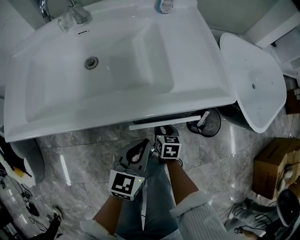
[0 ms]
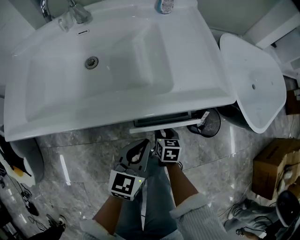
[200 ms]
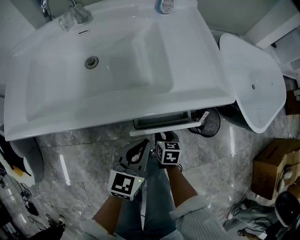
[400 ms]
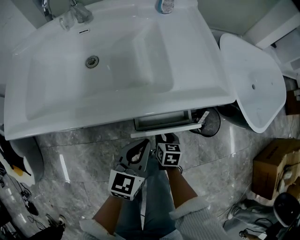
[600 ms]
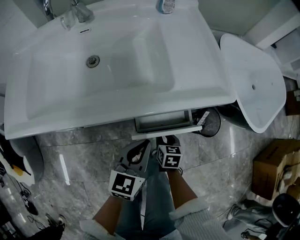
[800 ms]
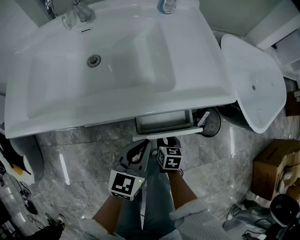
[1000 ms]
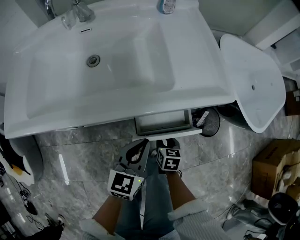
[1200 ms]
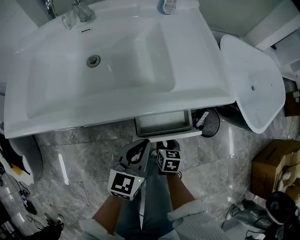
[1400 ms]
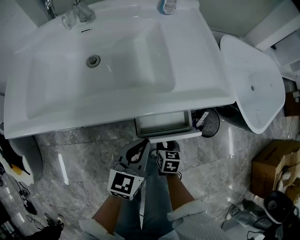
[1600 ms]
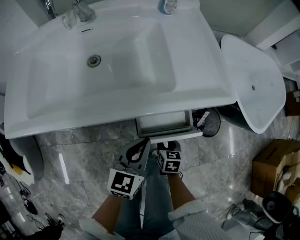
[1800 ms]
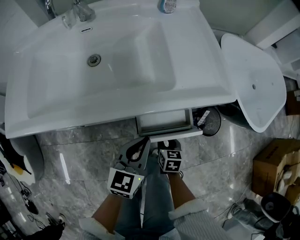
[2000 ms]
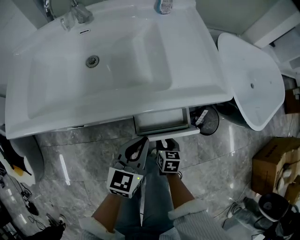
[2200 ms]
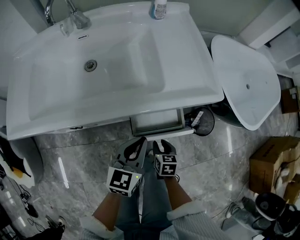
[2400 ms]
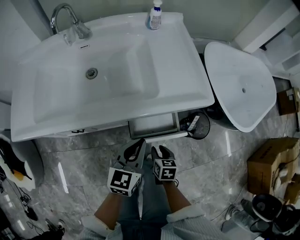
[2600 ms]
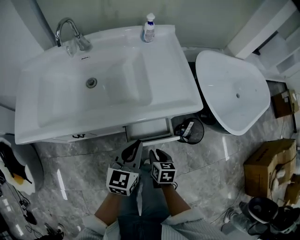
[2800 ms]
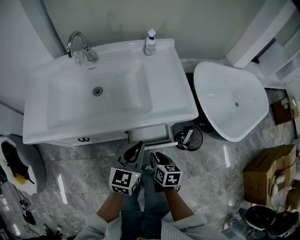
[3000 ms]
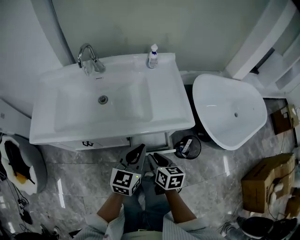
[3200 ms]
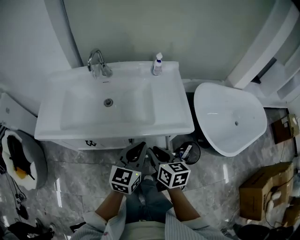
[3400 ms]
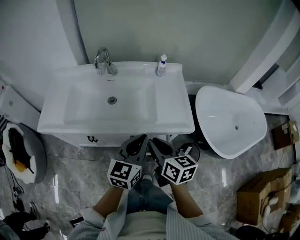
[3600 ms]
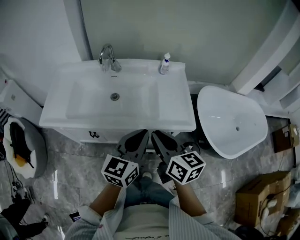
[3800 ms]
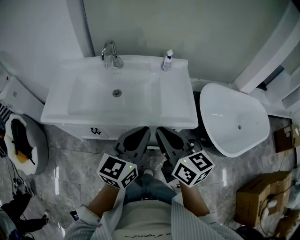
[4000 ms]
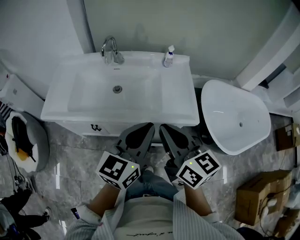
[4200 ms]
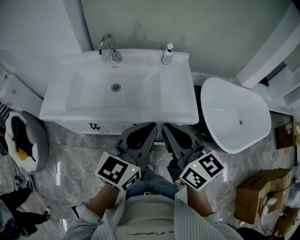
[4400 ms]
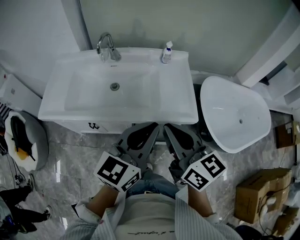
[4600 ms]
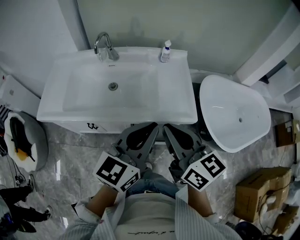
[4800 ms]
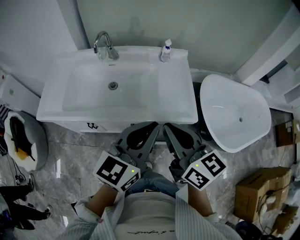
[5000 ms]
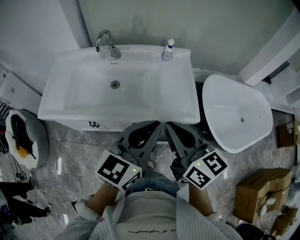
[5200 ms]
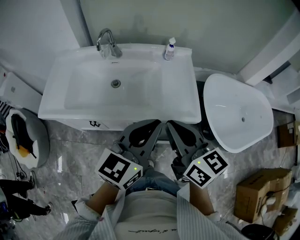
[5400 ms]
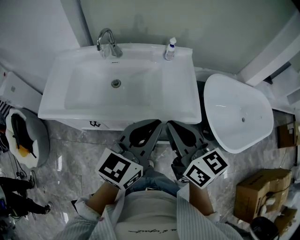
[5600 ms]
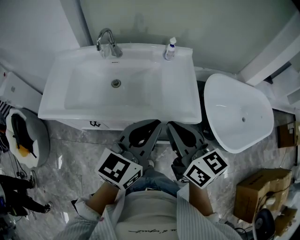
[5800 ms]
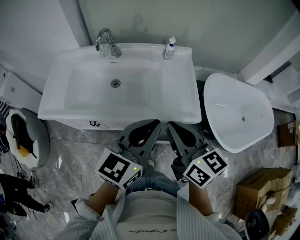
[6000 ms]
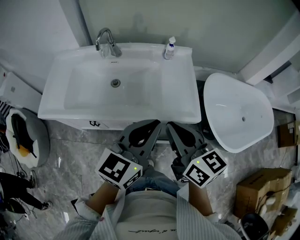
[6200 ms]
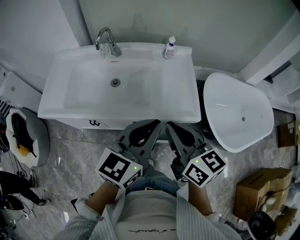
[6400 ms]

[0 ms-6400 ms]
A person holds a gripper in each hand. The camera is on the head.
0 ms to 1600 ms: The right gripper heads backward, covering some 5 cm.
1600 ms to 3200 ms: The right gripper moves upward, about 25 cm; the left gripper travels upward by roughly 15 cm.
3200 ms to 4800 ms: The grippers both shift upward by about 25 cm. The right gripper changes its angle by roughly 40 degrees, and closes.
4800 ms to 6400 ms: The grippers move only a little.

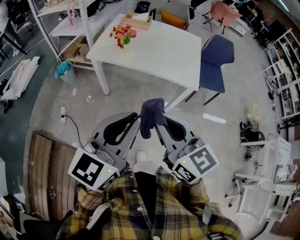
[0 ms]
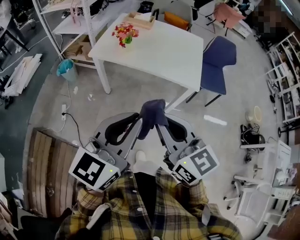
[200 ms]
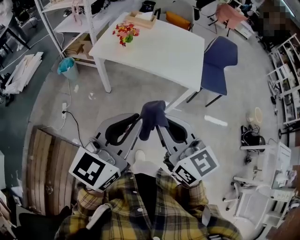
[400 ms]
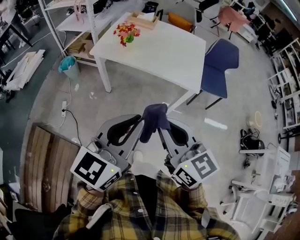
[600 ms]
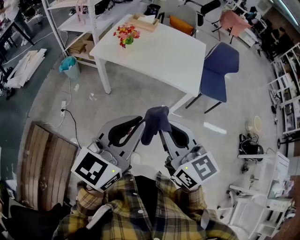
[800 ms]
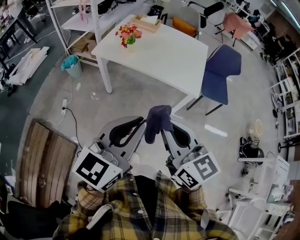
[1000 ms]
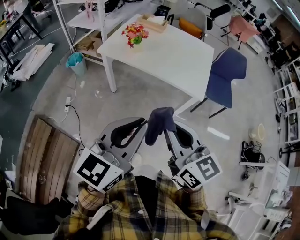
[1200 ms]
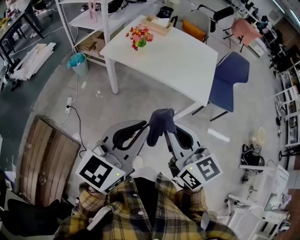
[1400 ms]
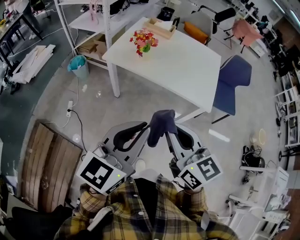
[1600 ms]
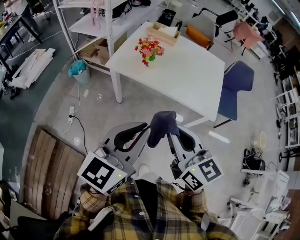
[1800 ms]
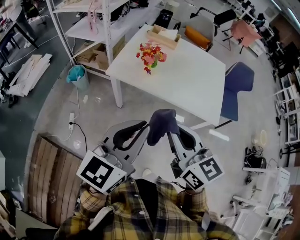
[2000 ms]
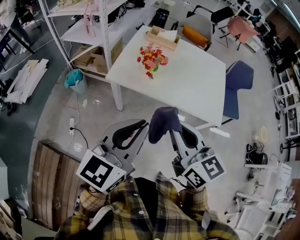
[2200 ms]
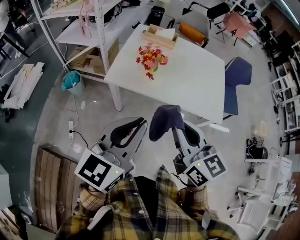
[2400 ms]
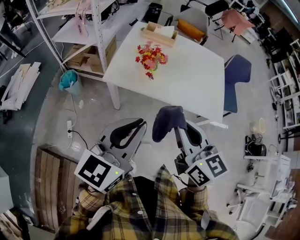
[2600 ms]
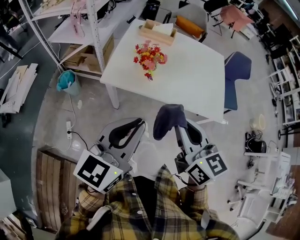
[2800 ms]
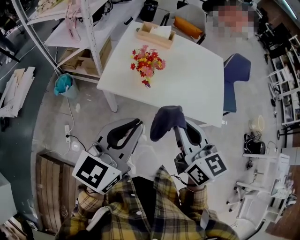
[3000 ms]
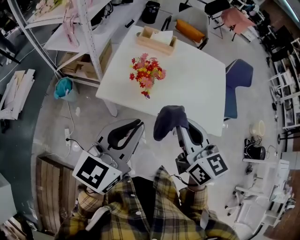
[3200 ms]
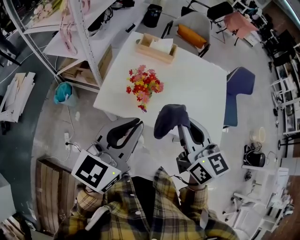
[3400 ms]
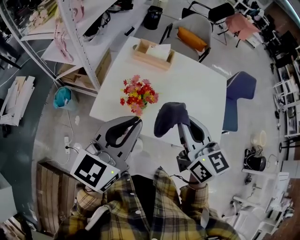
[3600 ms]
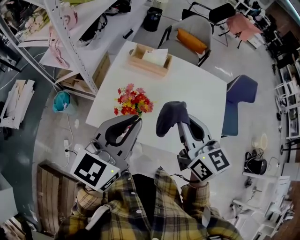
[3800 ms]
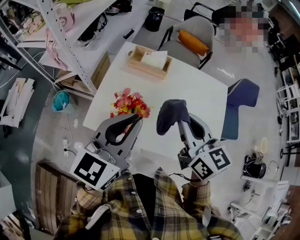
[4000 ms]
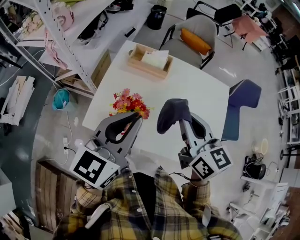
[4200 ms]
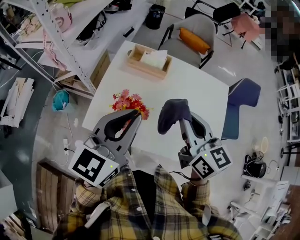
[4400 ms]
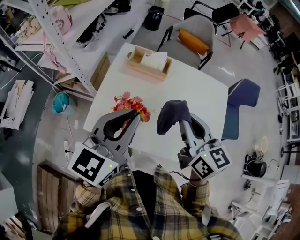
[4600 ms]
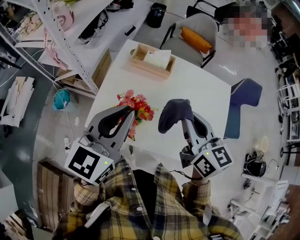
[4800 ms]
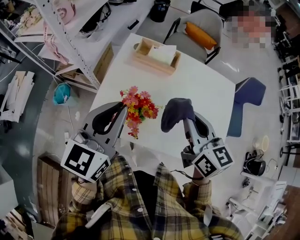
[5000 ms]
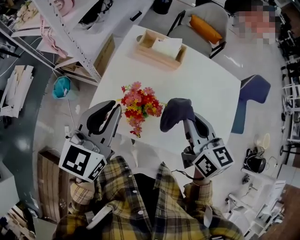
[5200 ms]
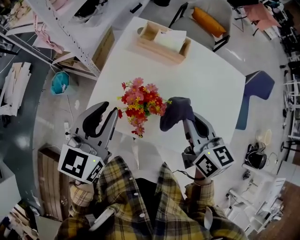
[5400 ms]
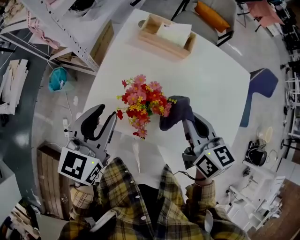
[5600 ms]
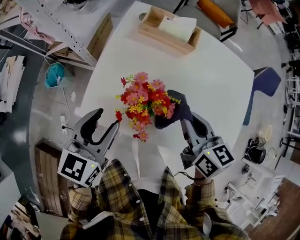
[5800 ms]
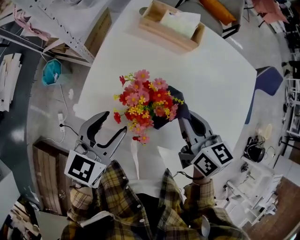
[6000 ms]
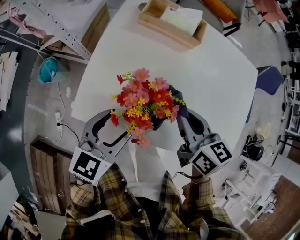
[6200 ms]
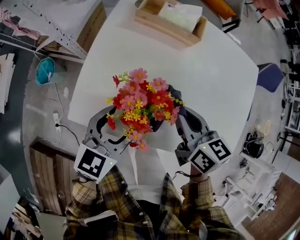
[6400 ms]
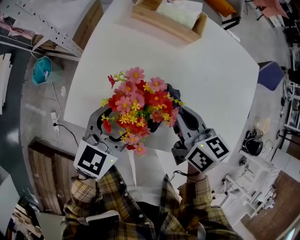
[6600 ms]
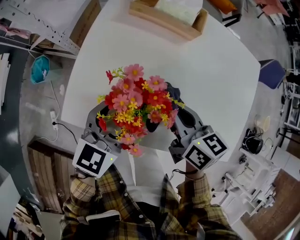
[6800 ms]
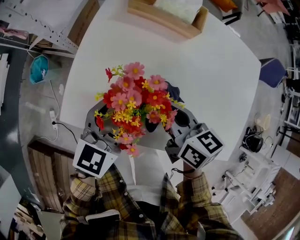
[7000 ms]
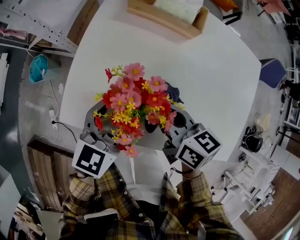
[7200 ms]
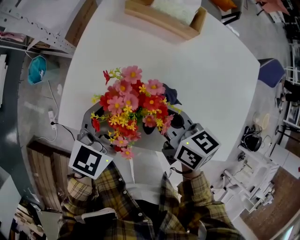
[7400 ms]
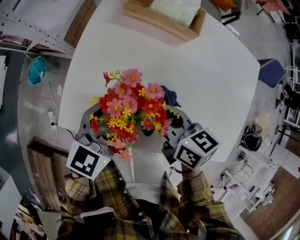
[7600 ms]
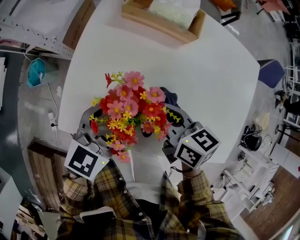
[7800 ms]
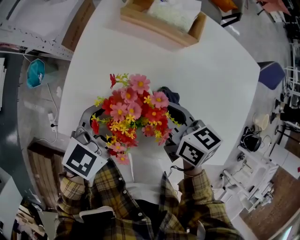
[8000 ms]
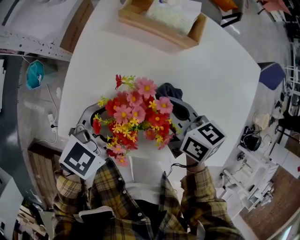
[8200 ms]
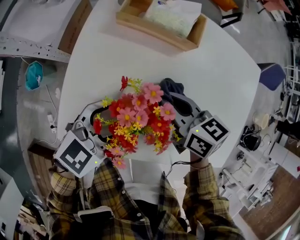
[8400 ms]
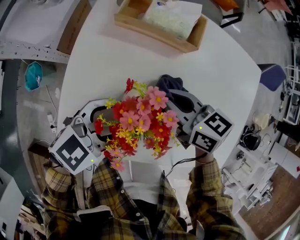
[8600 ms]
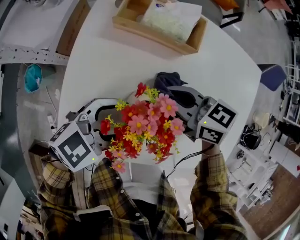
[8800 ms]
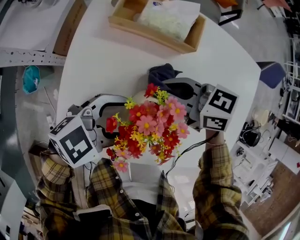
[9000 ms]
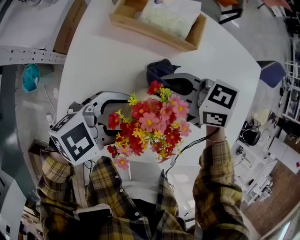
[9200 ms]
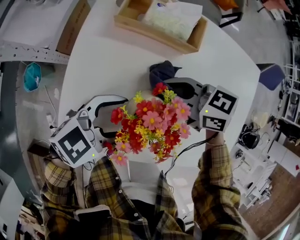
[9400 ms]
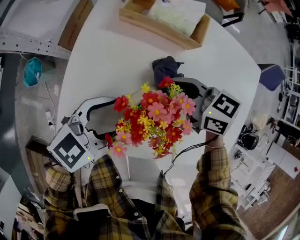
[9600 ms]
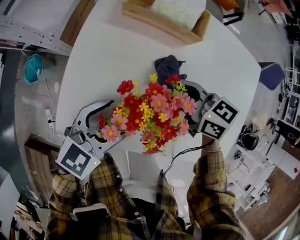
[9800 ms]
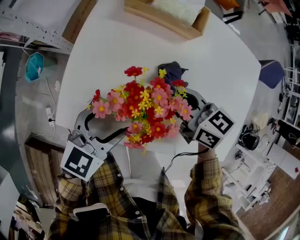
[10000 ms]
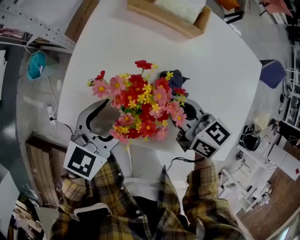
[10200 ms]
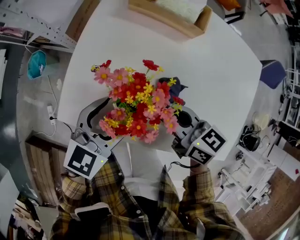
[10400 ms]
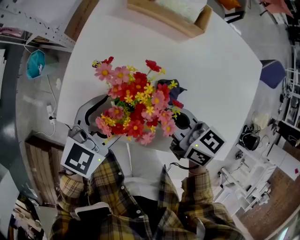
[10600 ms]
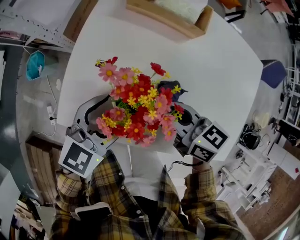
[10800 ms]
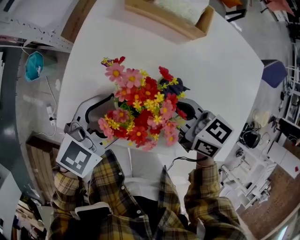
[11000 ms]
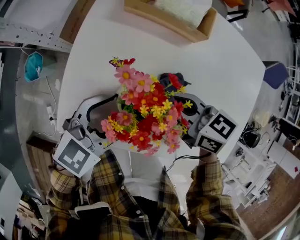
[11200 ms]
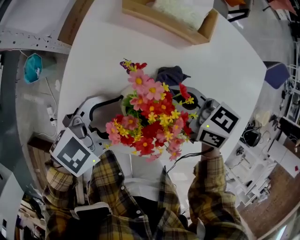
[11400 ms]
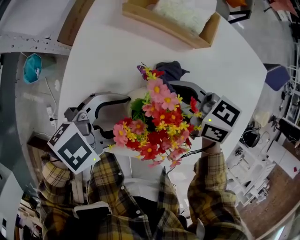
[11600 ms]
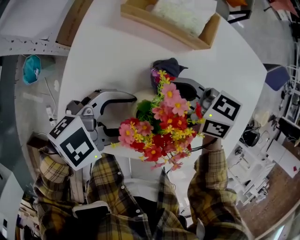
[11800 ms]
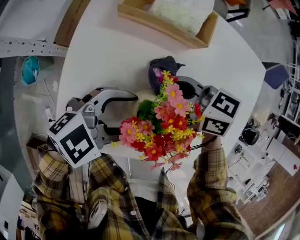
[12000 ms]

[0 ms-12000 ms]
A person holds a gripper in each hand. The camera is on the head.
0 ms to 1600 ms: The grippers both shift forward by some 5 cm.
1600 ms to 3000 ms: The two grippers go some 25 cm forward and to the left.
3000 ms to 4400 ms: The grippers both shift forward by roughly 25 cm.
4400 ms to 6000 ms: Both grippers move downward, about 20 cm. The left gripper rotates about 20 degrees, and opens its fingers, while the right gripper turns by about 20 degrees.
6000 ms to 7600 ms: The right gripper goes some 10 cm downward; the left gripper travels to the right and forward by approximately 10 cm.
7600 ms to 9000 ms: The right gripper changes place by some 10 cm, and swivels approximately 30 degrees. The left gripper changes its angle by about 40 degrees.
9000 ms to 10400 ms: The right gripper shifts by some 10 cm, and swivels about 20 degrees, while the left gripper ends up roughly 5 cm from where it was, and rotates about 40 degrees.
10400 ms to 12000 ms: The right gripper ends up roughly 10 cm from where it was. The left gripper ends up roughly 5 cm from where it was, and changes its angle by approximately 40 degrees.

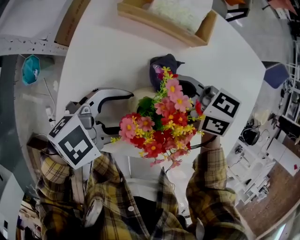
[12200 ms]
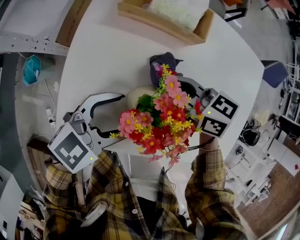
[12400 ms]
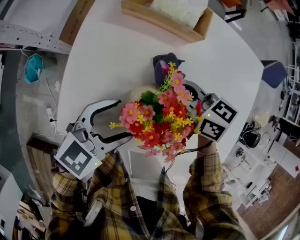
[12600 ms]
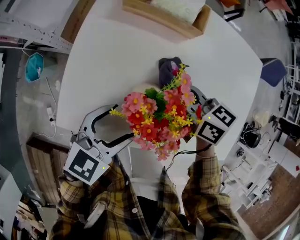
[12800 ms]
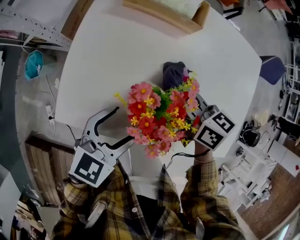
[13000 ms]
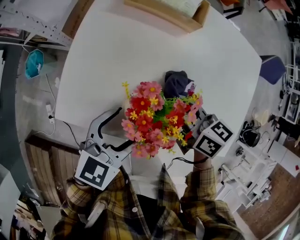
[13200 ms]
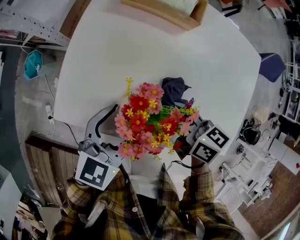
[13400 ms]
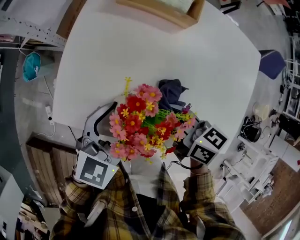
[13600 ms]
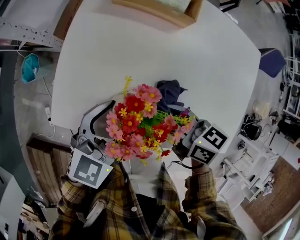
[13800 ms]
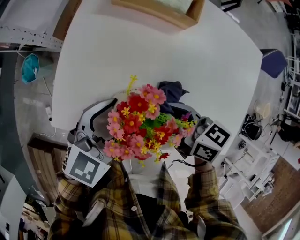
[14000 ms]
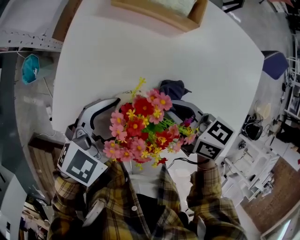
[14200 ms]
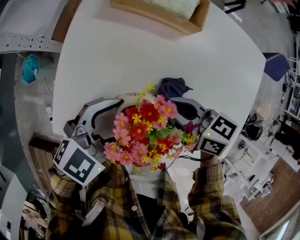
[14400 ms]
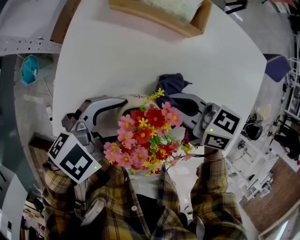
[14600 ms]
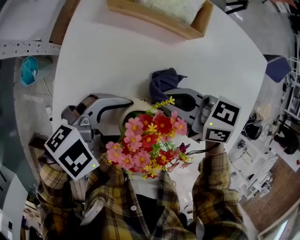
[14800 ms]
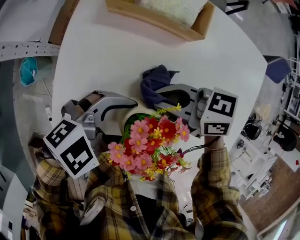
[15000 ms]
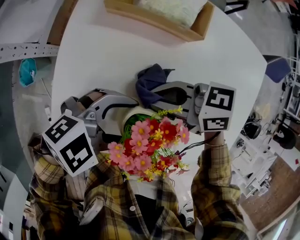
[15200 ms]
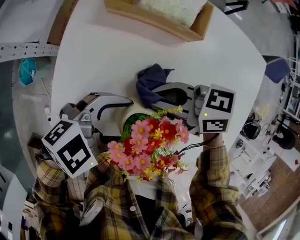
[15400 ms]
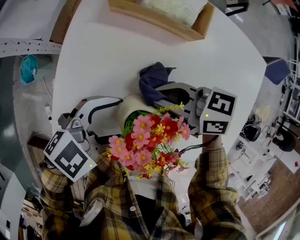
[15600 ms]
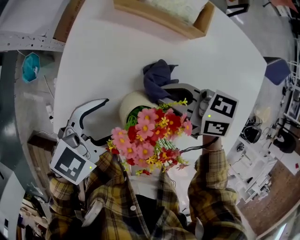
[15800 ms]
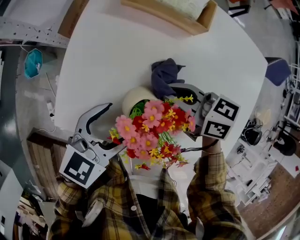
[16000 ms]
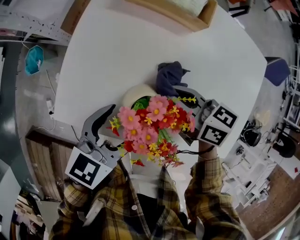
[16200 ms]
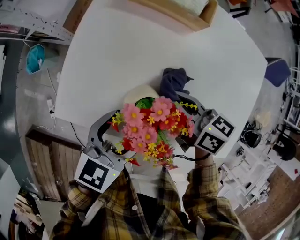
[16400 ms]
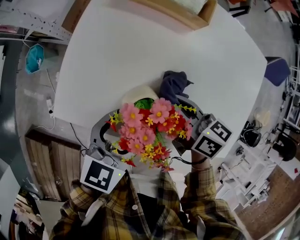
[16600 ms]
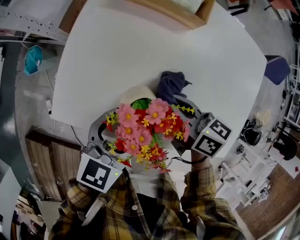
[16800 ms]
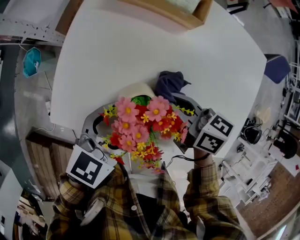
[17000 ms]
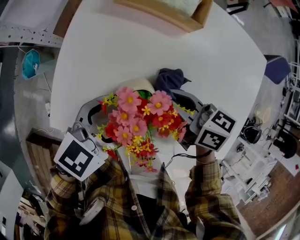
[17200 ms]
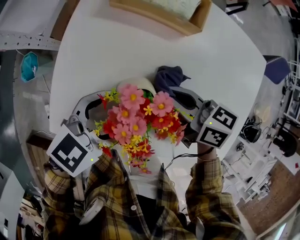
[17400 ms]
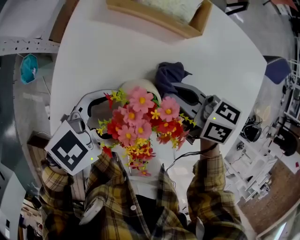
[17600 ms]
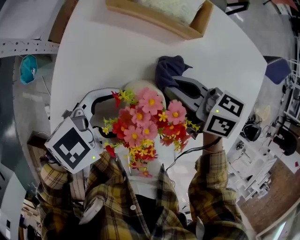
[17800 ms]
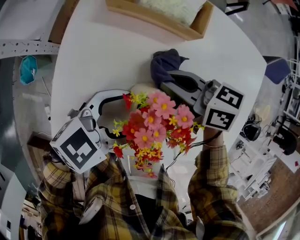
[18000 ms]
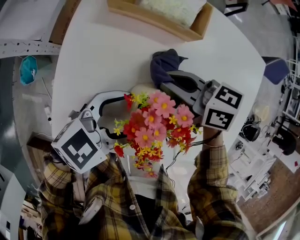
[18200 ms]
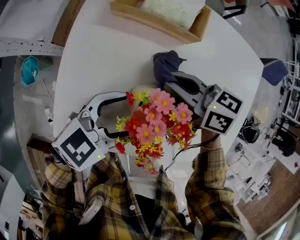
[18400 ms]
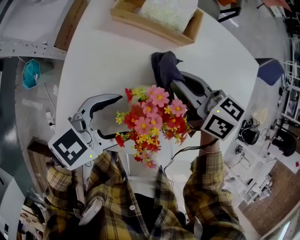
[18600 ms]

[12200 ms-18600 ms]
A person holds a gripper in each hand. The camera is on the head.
12200 ms to 13800 ms: The left gripper shifts by some 5 cm, and swivels about 30 degrees; the right gripper ends up some 15 cm from where it was.
13800 ms to 15400 ms: The left gripper rotates roughly 40 degrees; the right gripper moves approximately 10 cm, and rotates roughly 30 degrees.
15400 ms to 17000 ms: The right gripper changes place by some 5 cm, and turns by approximately 30 degrees; the left gripper turns by some 40 degrees.
17000 ms to 18600 ms: The left gripper moves some 5 cm. The right gripper shifts by some 10 cm.
